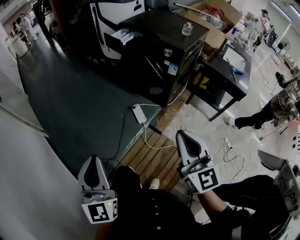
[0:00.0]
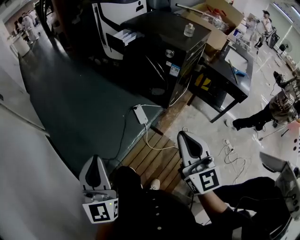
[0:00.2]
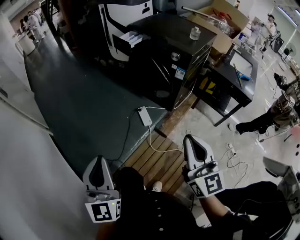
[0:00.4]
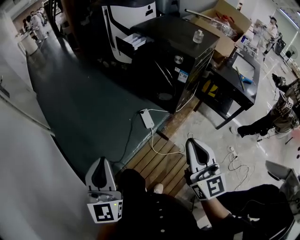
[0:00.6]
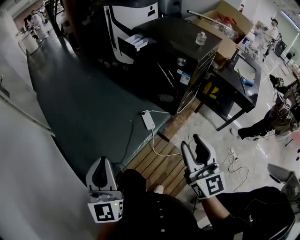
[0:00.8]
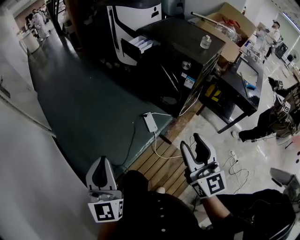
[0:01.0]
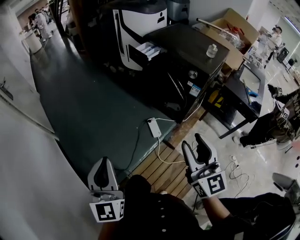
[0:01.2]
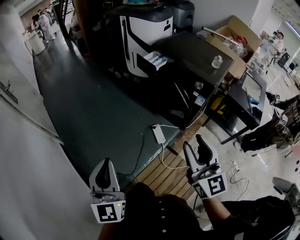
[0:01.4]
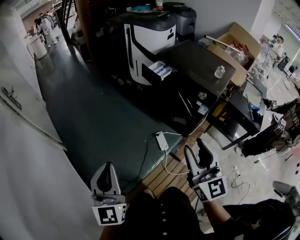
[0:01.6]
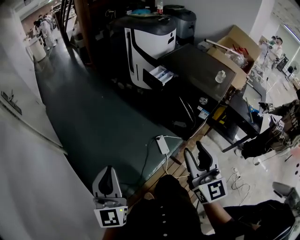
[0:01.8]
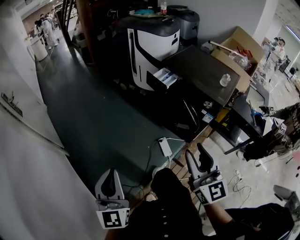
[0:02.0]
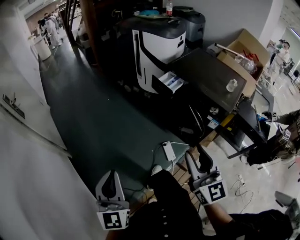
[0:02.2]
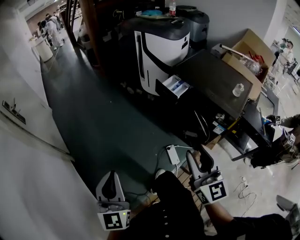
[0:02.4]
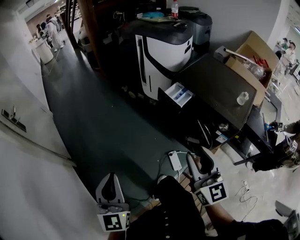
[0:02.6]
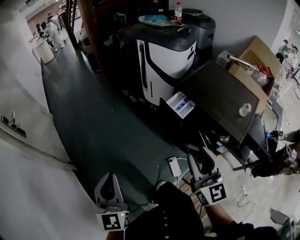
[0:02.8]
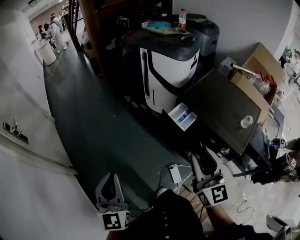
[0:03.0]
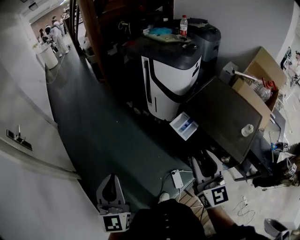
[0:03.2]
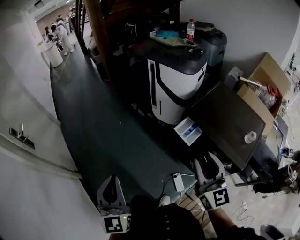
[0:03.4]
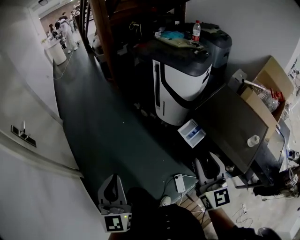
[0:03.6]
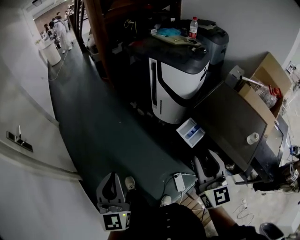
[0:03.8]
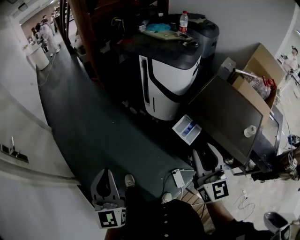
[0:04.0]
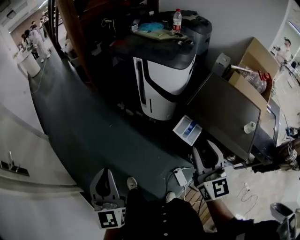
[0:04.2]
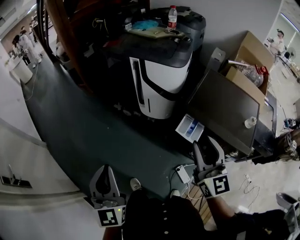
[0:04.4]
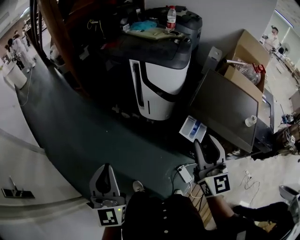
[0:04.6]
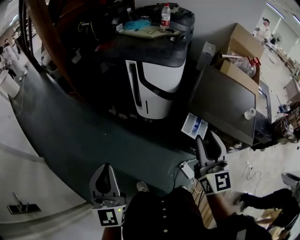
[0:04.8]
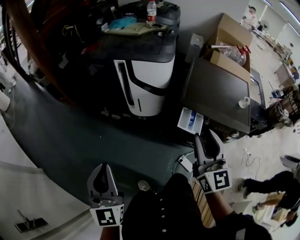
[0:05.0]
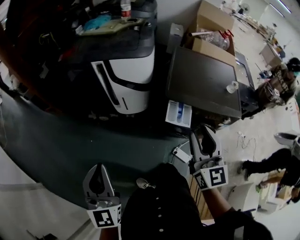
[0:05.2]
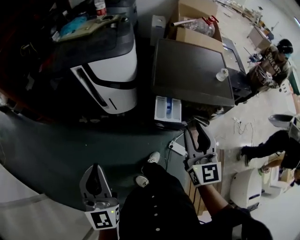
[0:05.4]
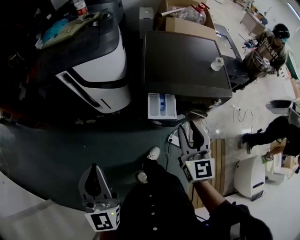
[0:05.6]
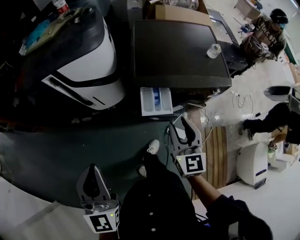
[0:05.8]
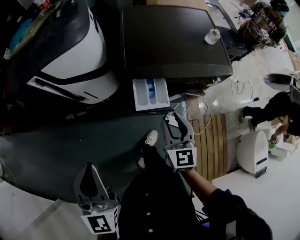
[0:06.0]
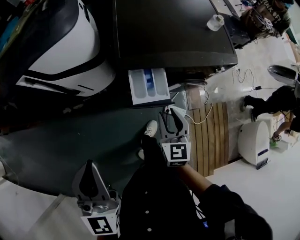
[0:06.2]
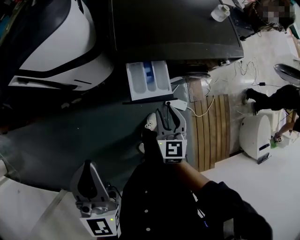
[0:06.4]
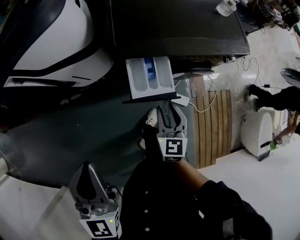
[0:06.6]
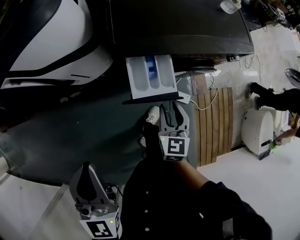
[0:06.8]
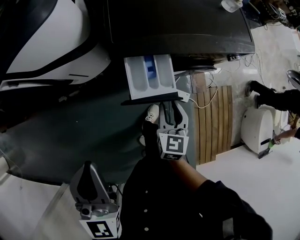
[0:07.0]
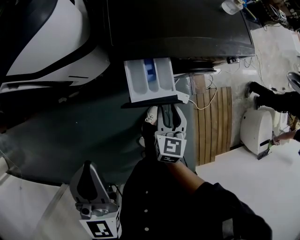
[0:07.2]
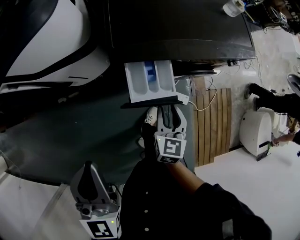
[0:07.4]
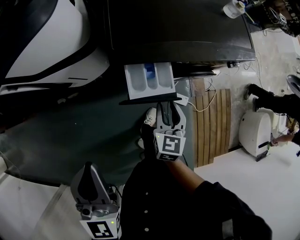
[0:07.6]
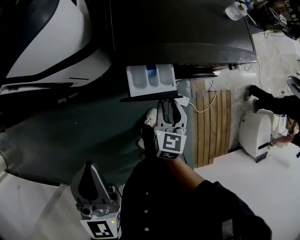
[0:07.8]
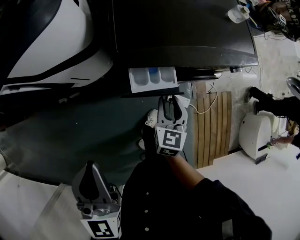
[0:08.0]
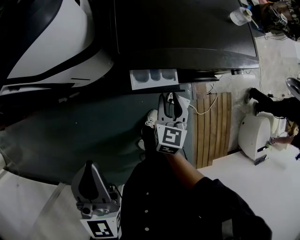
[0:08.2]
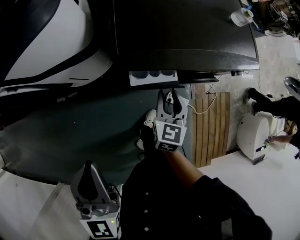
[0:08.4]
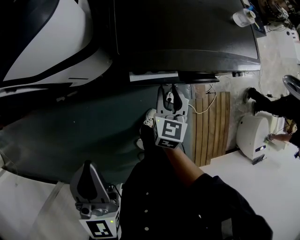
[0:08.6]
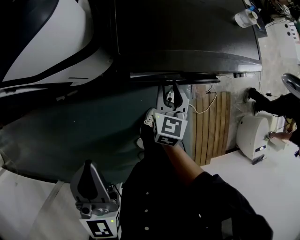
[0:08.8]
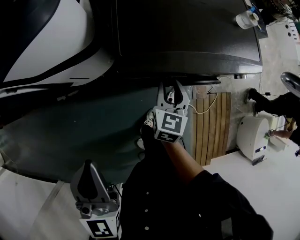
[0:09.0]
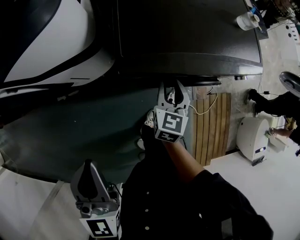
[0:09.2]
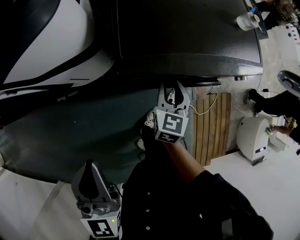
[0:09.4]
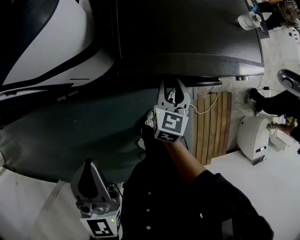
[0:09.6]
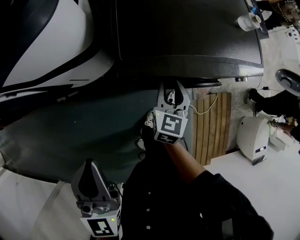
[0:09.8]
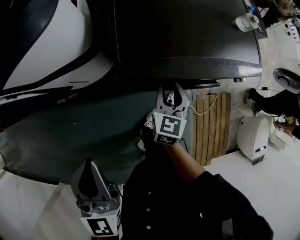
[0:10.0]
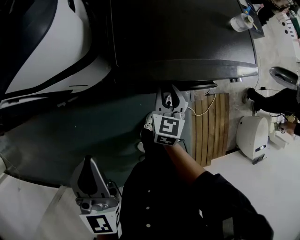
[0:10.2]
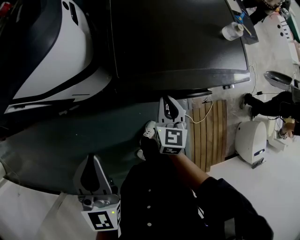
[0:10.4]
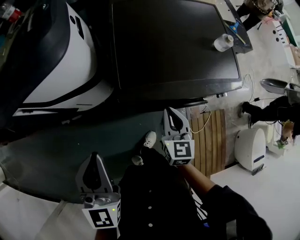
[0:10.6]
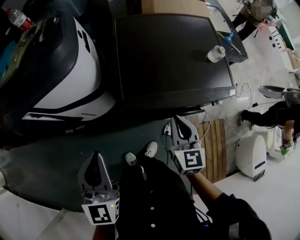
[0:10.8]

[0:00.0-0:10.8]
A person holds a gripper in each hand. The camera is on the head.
0:00.0 to 0:01.6: Both grippers move forward, to the left and upward, roughly 20 cm. The right gripper opens its fingers.
0:01.6 to 0:03.0: The grippers both shift forward by roughly 30 cm.
0:03.0 to 0:04.6: The right gripper shifts about 20 cm forward and to the left, while the left gripper moves forward, some 25 cm.
0:04.6 to 0:06.2: The right gripper travels downward by approximately 30 cm, and swivels approximately 50 degrees, while the left gripper shifts by some 25 cm, and changes its angle by about 40 degrees.
0:06.2 to 0:07.8: The right gripper shifts some 10 cm downward and forward; the left gripper shifts about 10 cm forward and downward.
0:07.8 to 0:09.2: The right gripper moves forward, about 10 cm.
0:09.2 to 0:10.8: The right gripper is displaced upward by some 15 cm, and closes. Meanwhile the left gripper travels forward and upward by about 10 cm.

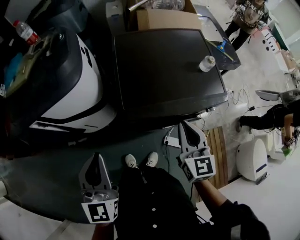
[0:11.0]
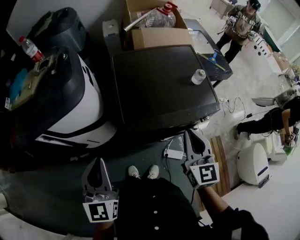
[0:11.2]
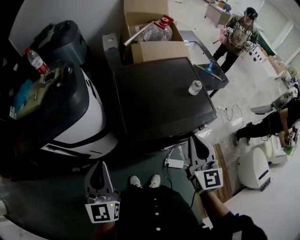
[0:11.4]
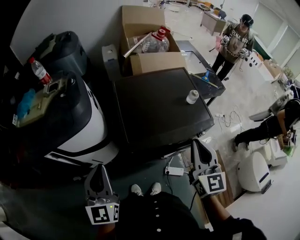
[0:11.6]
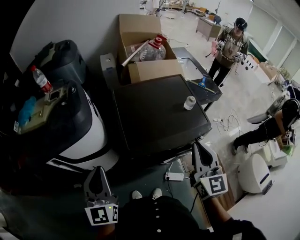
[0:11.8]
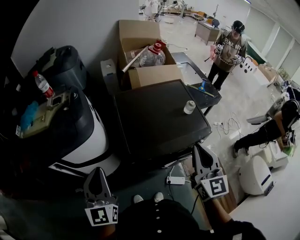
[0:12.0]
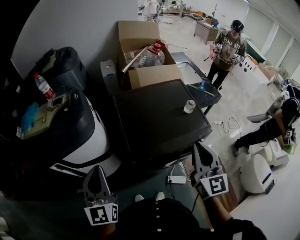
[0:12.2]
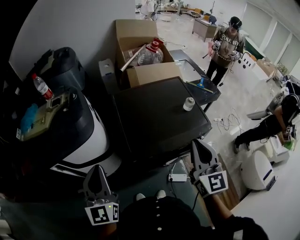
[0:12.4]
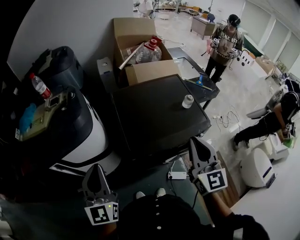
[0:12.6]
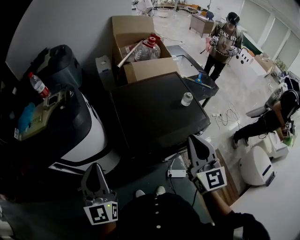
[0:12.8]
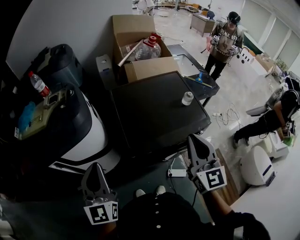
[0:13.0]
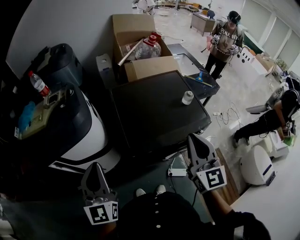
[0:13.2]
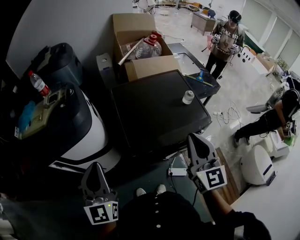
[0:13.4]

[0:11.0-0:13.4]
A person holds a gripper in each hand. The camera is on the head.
0:11.0 to 0:12.2: The right gripper travels upward by about 15 cm. The left gripper is displaced upward by approximately 10 cm.
0:12.2 to 0:13.4: There are only small adjustments of the grippers.

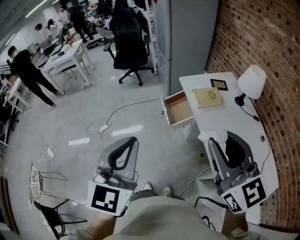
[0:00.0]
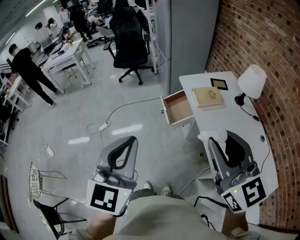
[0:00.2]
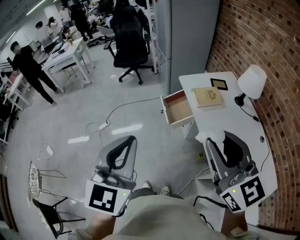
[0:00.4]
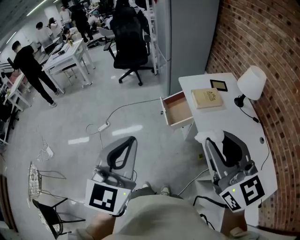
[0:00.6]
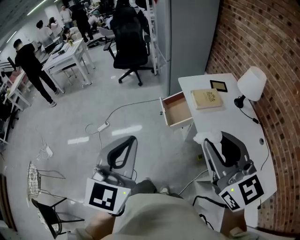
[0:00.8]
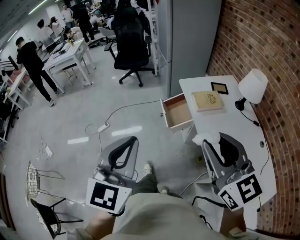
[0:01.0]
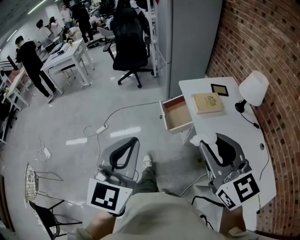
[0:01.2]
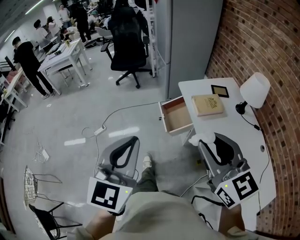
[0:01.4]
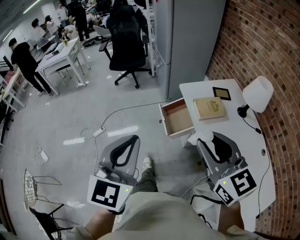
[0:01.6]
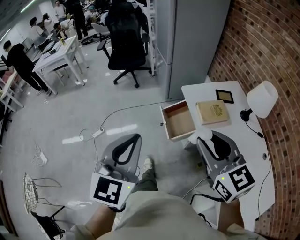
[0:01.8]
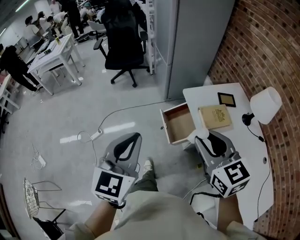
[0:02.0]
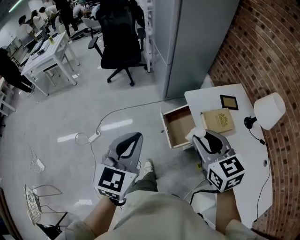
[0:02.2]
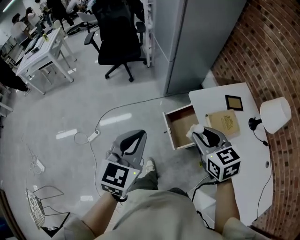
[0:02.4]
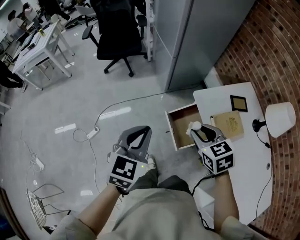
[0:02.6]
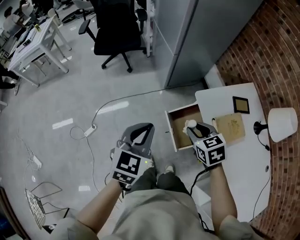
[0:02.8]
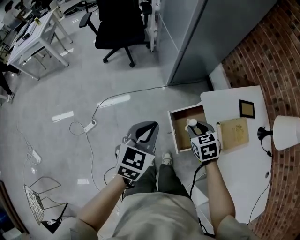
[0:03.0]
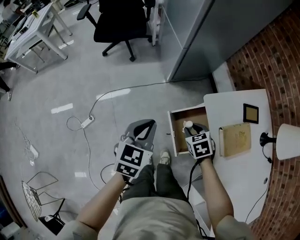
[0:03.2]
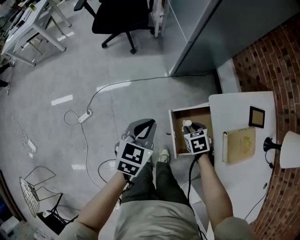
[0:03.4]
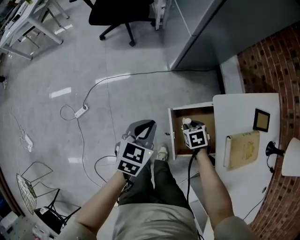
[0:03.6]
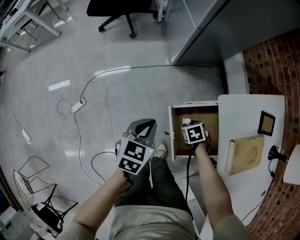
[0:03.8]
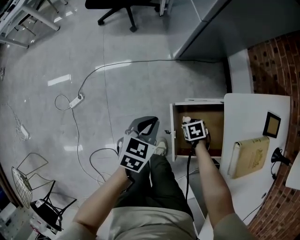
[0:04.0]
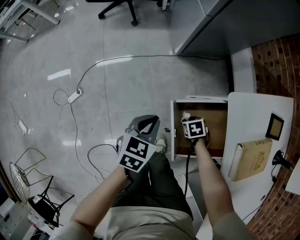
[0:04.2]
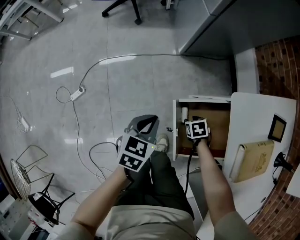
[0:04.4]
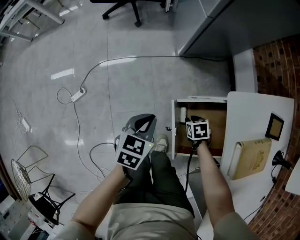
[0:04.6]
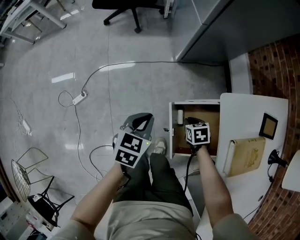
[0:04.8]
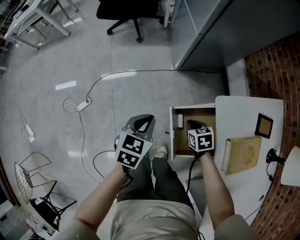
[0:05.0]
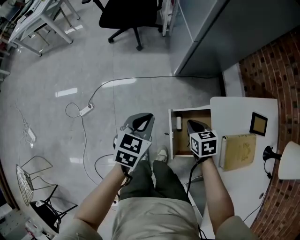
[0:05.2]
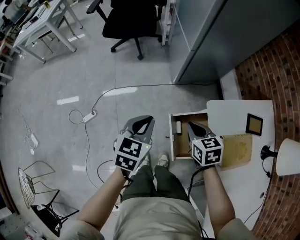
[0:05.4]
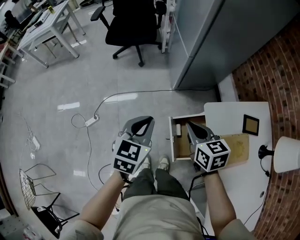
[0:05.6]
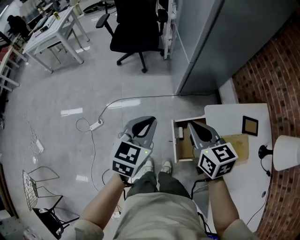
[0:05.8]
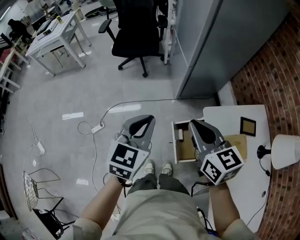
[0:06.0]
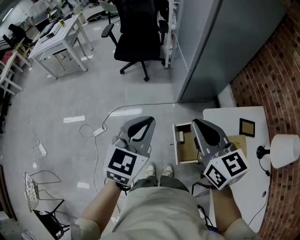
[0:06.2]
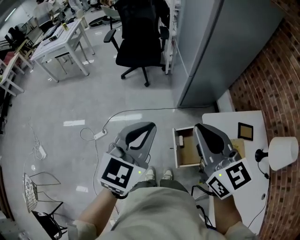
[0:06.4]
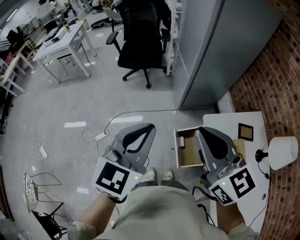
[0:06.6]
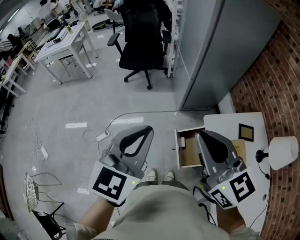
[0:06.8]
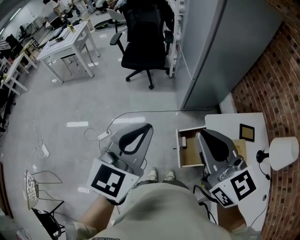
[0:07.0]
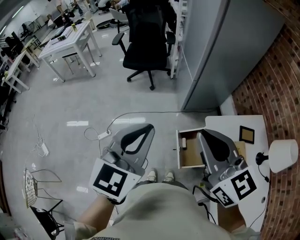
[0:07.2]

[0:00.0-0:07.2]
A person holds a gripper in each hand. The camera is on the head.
0:00.0 to 0:01.4: The right gripper moves forward and downward, approximately 10 cm; the left gripper moves forward, about 5 cm.
0:01.4 to 0:02.8: The pair of grippers is taken forward, some 40 cm. Both grippers move downward, some 25 cm. The right gripper tips its fingers downward by approximately 40 degrees. Meanwhile the left gripper rotates about 20 degrees.
0:02.8 to 0:04.4: The two grippers go approximately 40 cm downward. The left gripper swivels some 30 degrees. The right gripper tips its fingers downward by approximately 30 degrees.
0:04.4 to 0:05.8: The right gripper travels upward by about 50 cm, tips its fingers upward by about 50 degrees, and closes up. The left gripper travels upward by roughly 30 cm, and swivels roughly 20 degrees.
0:05.8 to 0:07.2: Both grippers travel together upward and backward, approximately 25 cm. The right gripper rotates about 30 degrees.

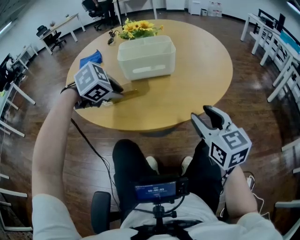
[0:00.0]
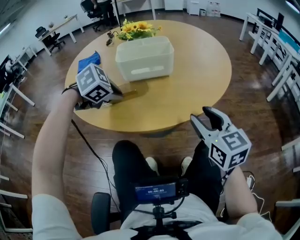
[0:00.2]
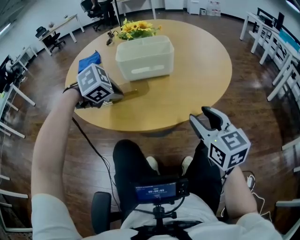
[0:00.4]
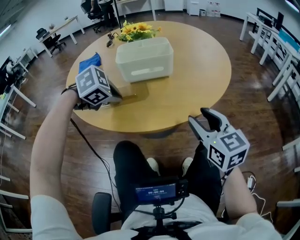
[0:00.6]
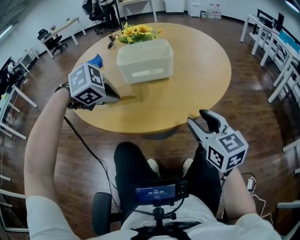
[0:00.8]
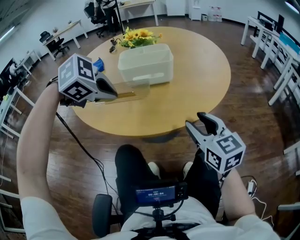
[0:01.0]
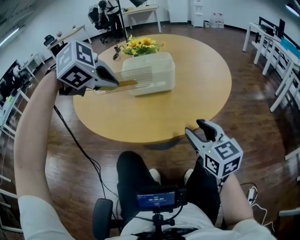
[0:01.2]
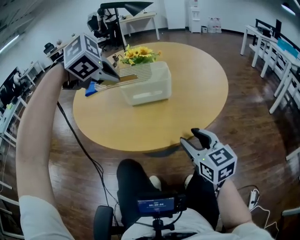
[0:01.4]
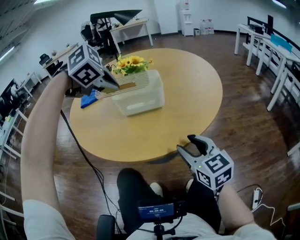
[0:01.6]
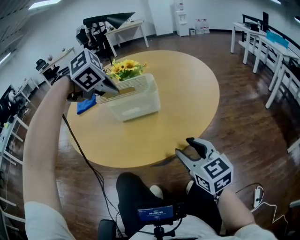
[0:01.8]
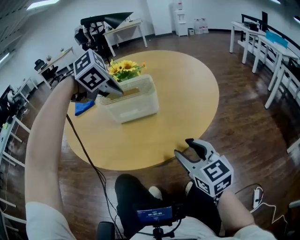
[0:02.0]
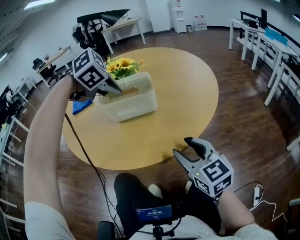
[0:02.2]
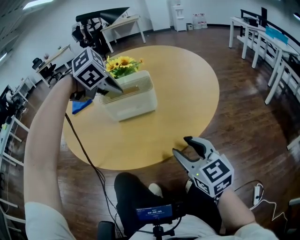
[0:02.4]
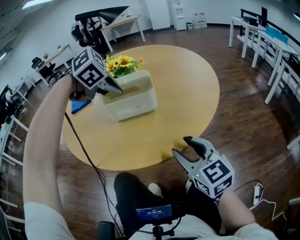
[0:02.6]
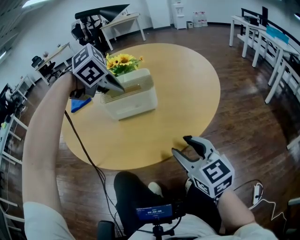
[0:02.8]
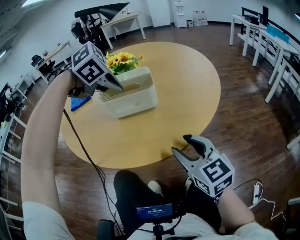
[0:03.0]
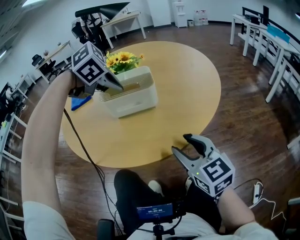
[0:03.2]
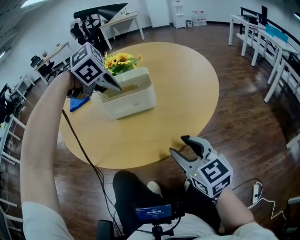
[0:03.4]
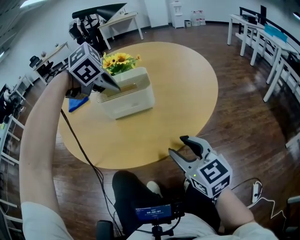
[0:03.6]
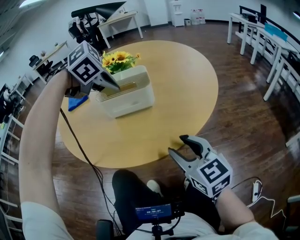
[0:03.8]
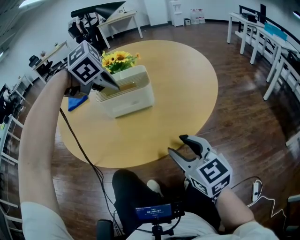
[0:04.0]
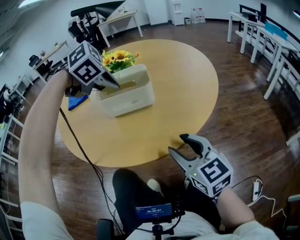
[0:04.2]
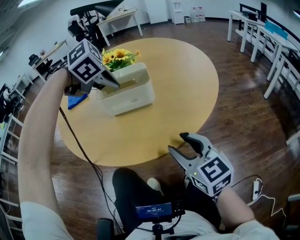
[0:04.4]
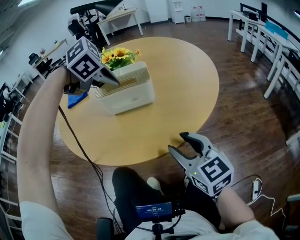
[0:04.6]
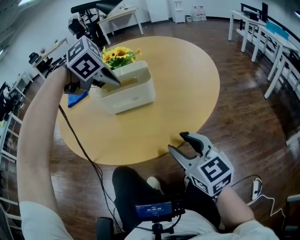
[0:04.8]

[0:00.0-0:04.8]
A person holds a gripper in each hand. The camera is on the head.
0:00.0 to 0:01.6: The left gripper shifts about 15 cm upward, and closes.
0:01.6 to 0:03.2: The left gripper ends up some 5 cm from where it was.
0:03.2 to 0:04.8: The two grippers keep their place.
